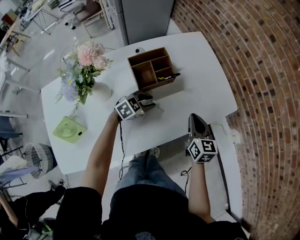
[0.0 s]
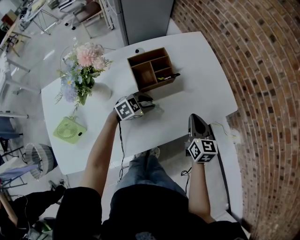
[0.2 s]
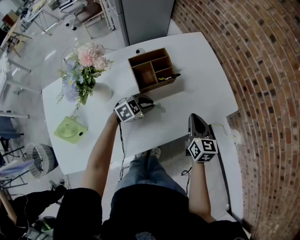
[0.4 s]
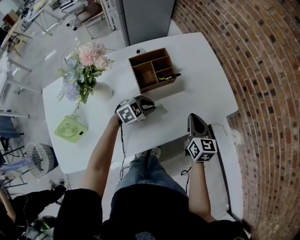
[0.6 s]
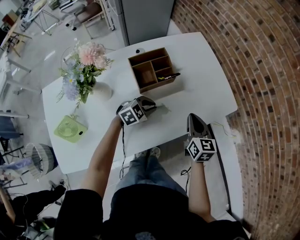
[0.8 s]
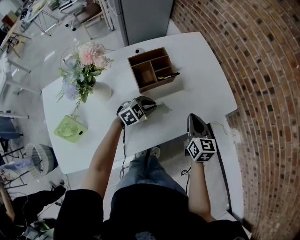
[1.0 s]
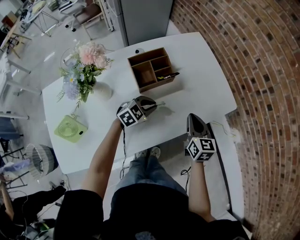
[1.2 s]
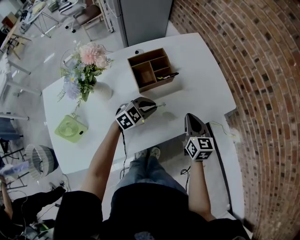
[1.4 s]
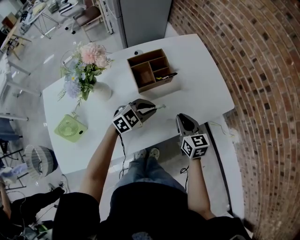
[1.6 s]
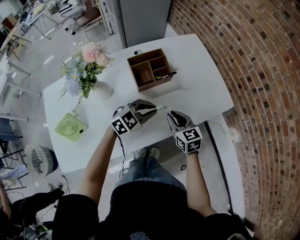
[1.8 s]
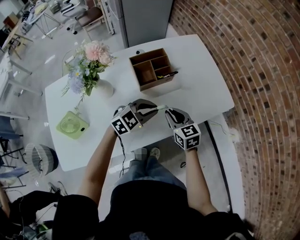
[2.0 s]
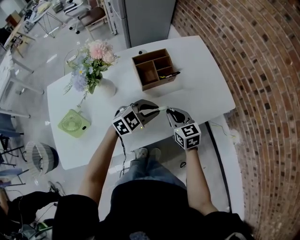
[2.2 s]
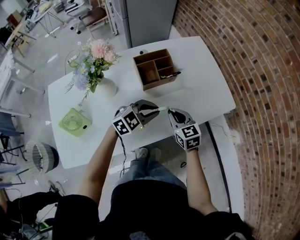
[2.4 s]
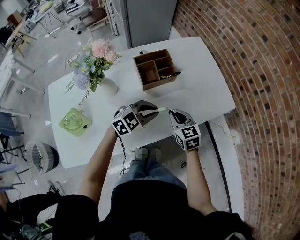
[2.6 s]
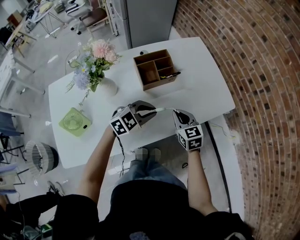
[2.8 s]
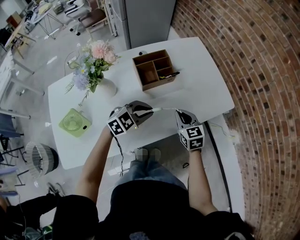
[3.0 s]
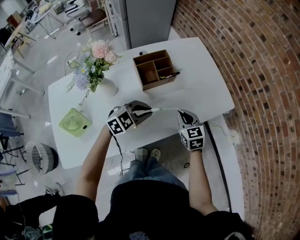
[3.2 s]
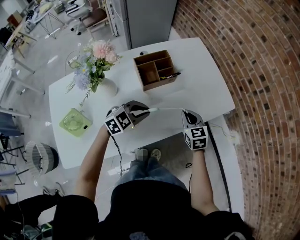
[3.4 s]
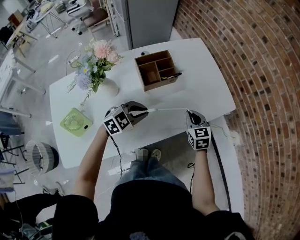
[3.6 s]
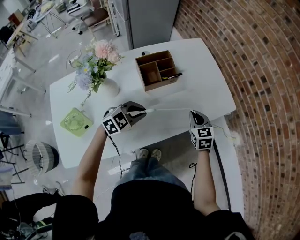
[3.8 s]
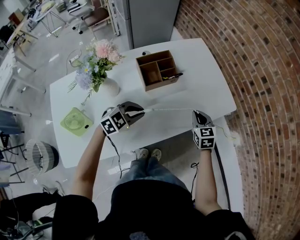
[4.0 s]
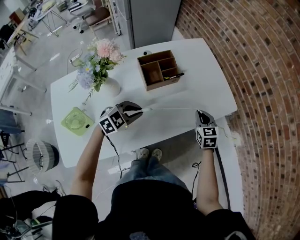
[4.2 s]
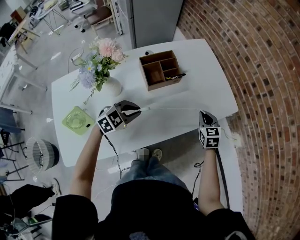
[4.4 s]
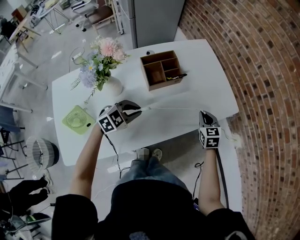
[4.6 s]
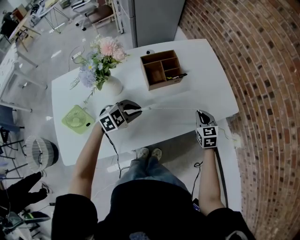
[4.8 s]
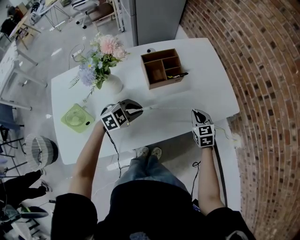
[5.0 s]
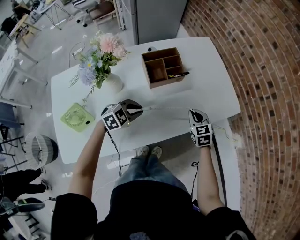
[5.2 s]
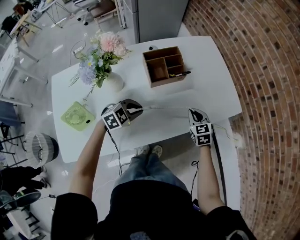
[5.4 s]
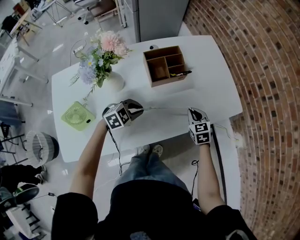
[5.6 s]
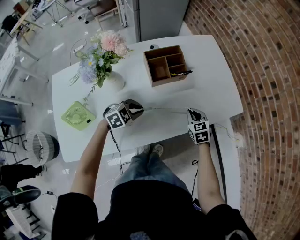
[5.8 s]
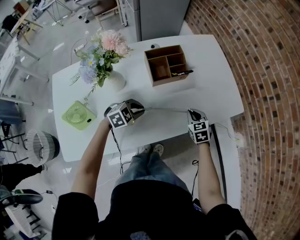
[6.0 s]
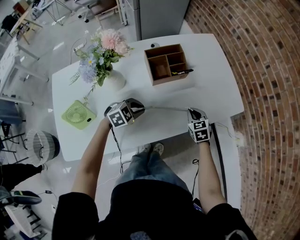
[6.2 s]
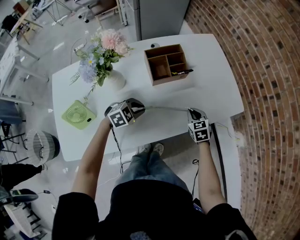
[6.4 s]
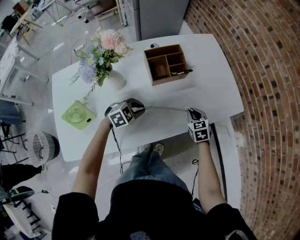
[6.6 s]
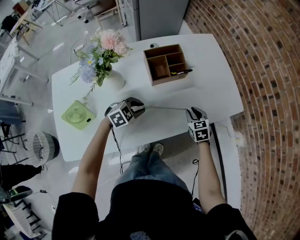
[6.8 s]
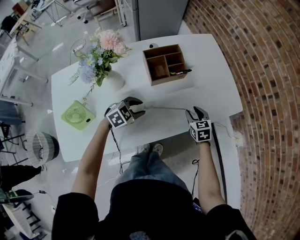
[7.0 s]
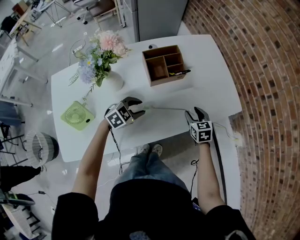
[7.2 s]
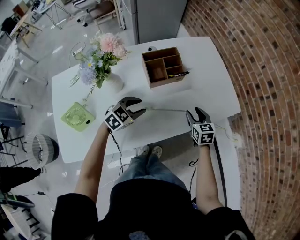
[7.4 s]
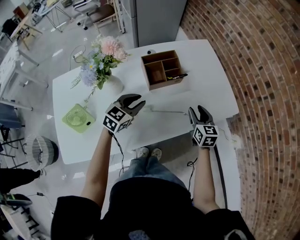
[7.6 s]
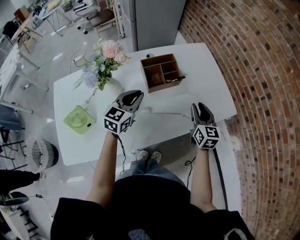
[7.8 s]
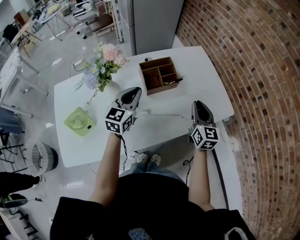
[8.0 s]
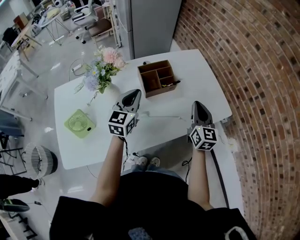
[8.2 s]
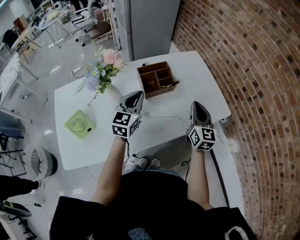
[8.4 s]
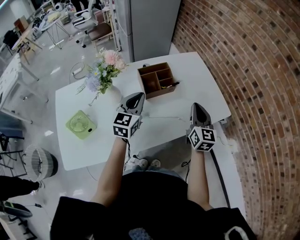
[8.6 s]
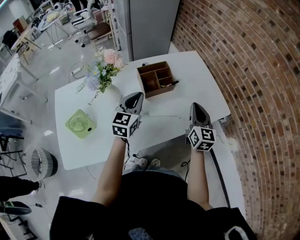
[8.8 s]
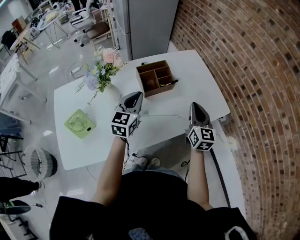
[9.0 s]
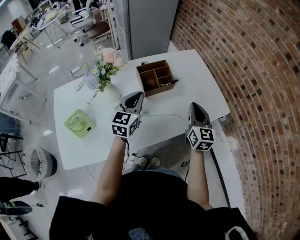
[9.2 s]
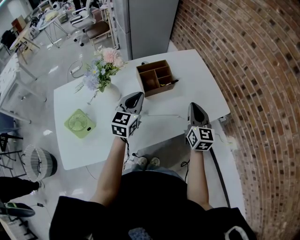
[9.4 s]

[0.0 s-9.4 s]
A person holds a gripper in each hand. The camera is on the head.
0.0 to 1.6 s: The left gripper is displaced upward by about 5 cm, and closes; the right gripper shifts by approximately 5 cm.
1.6 to 3.2 s: The left gripper goes about 5 cm backward.
3.2 to 4.8 s: The left gripper shifts about 5 cm to the left. The right gripper moves to the right and forward, about 10 cm.
4.8 to 6.2 s: The grippers both shift downward by roughly 5 cm.
6.2 to 7.8 s: The grippers both shift upward by about 15 cm. The left gripper points its fingers some 30 degrees further upward, and opens and closes again. Meanwhile the right gripper swivels approximately 30 degrees, and opens its fingers.
7.8 to 9.4 s: The right gripper moves upward, approximately 5 cm, and closes its fingers, while the left gripper ends up about 5 cm from where it was.

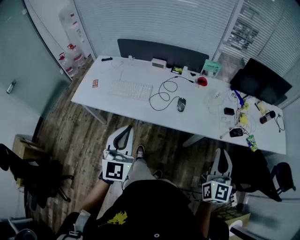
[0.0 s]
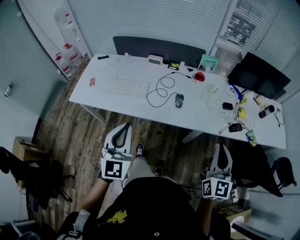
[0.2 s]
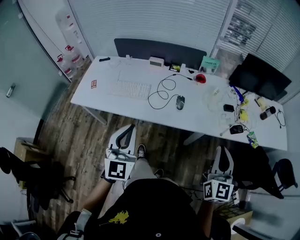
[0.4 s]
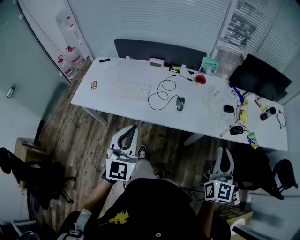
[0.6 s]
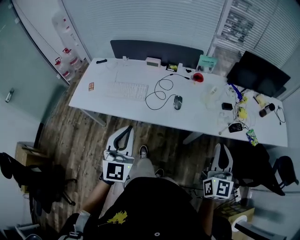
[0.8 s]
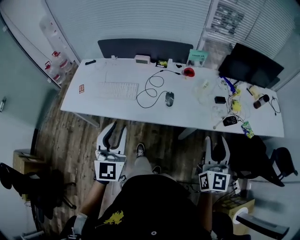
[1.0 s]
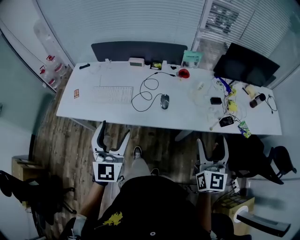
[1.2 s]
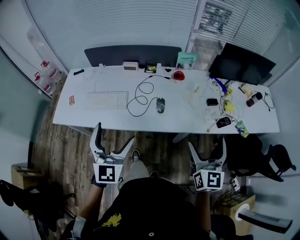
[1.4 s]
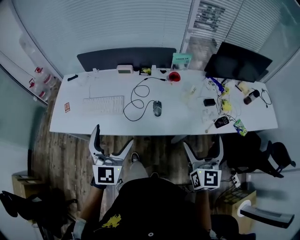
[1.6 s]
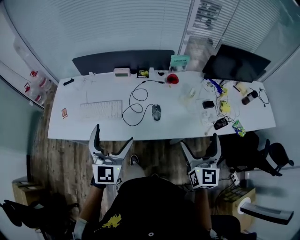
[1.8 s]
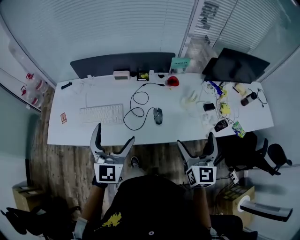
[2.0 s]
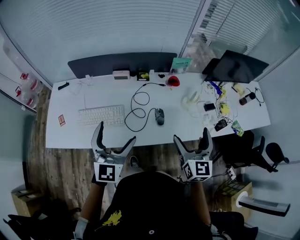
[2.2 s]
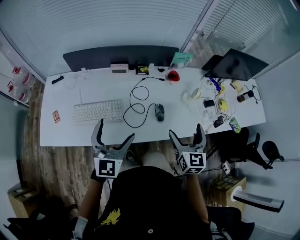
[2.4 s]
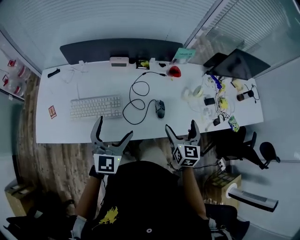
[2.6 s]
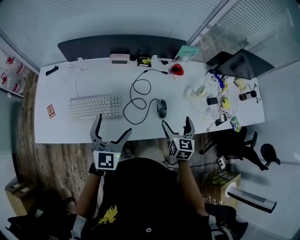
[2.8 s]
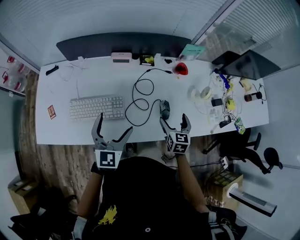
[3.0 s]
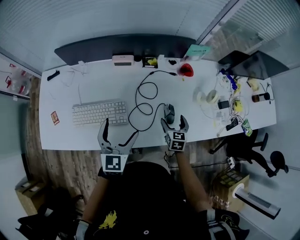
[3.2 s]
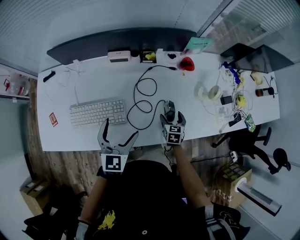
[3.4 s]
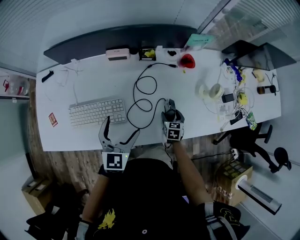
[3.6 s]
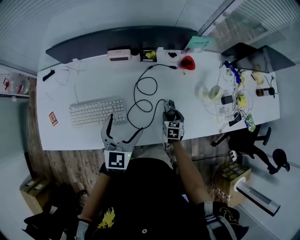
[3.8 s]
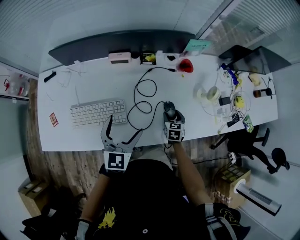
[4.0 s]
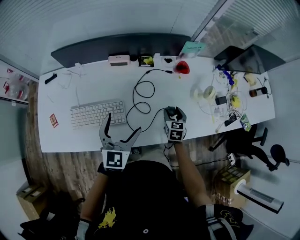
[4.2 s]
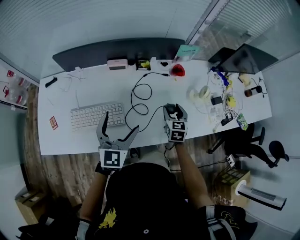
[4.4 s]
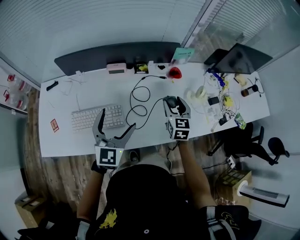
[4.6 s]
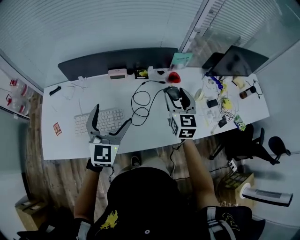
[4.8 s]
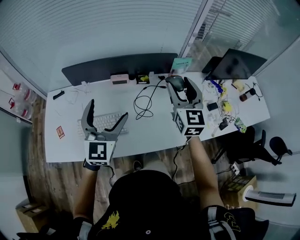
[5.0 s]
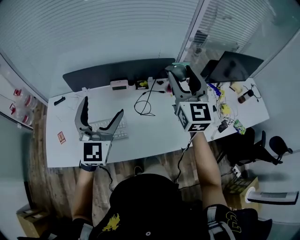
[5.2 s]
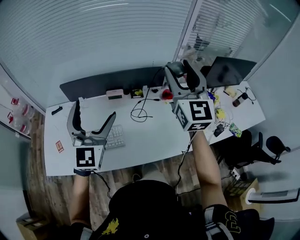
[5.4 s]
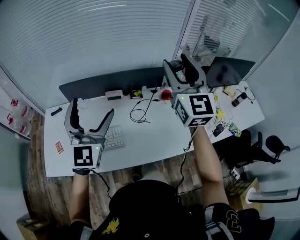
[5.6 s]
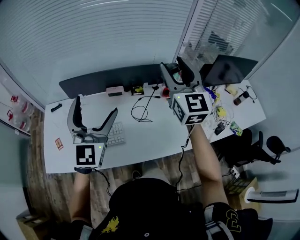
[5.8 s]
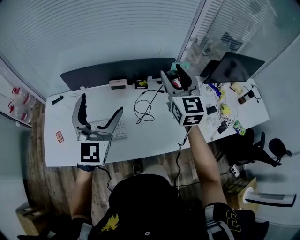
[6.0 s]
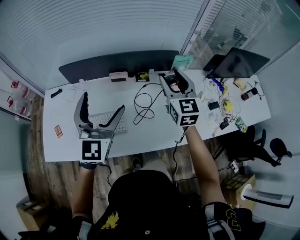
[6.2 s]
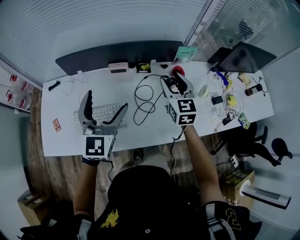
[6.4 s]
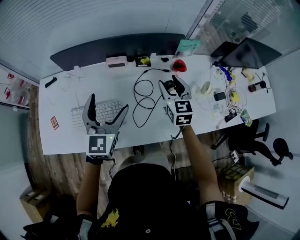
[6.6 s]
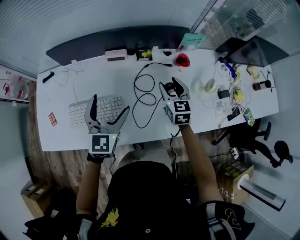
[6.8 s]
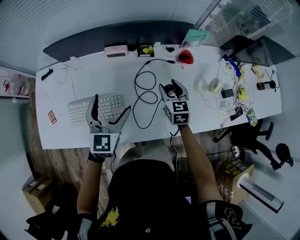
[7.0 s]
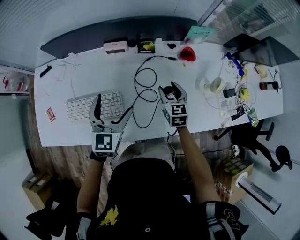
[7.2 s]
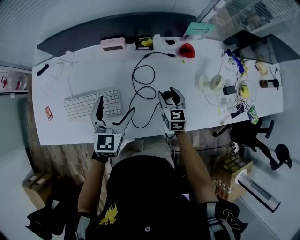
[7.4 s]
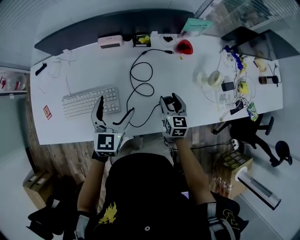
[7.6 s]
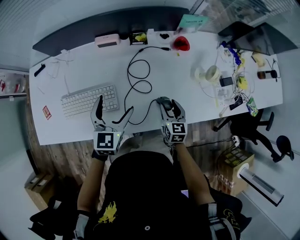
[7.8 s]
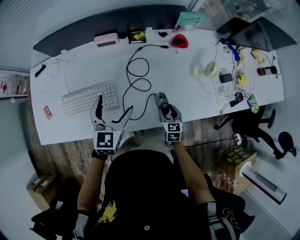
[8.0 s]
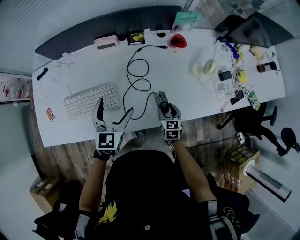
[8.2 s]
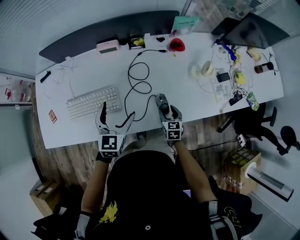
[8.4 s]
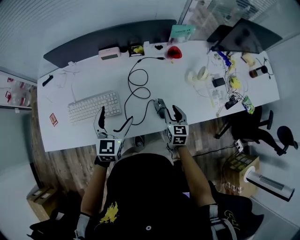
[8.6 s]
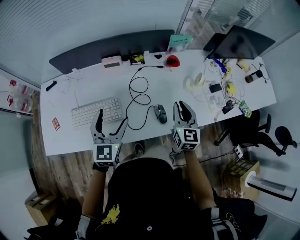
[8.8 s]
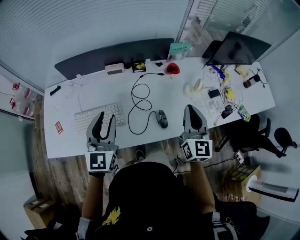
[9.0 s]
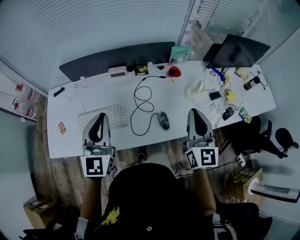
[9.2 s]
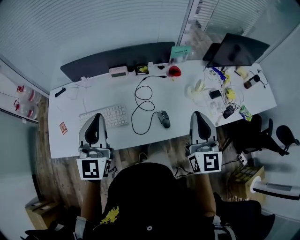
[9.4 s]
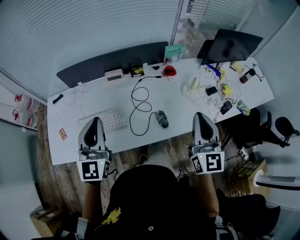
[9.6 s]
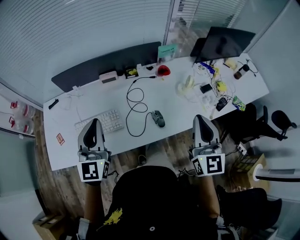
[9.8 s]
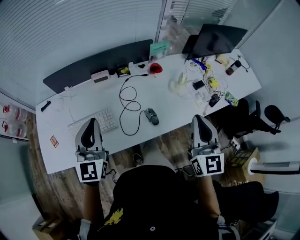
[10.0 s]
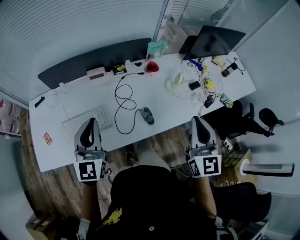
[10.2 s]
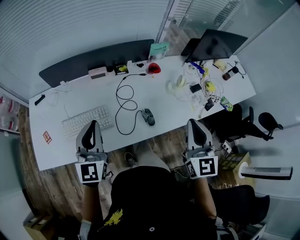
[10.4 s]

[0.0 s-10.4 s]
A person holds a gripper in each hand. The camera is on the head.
0.0 to 1.4 s: Both grippers travel together forward, approximately 10 cm. The right gripper opens up; the left gripper opens its fingers.
1.4 to 3.0 s: The left gripper is displaced forward, to the left and downward by approximately 35 cm; the right gripper heads forward, downward and to the left, covering some 40 cm, and angles its fingers downward, by about 30 degrees.
3.0 to 4.4 s: The right gripper moves forward, approximately 5 cm, goes downward and returns, approximately 20 cm each way, and closes, while the left gripper goes downward and returns, some 5 cm each way.
4.4 to 6.0 s: The right gripper goes some 35 cm upward, and points its fingers approximately 30 degrees further upward; the left gripper moves upward, approximately 20 cm.
6.0 to 7.4 s: The grippers both shift downward by some 35 cm. The right gripper tilts its fingers some 30 degrees downward; the left gripper swivels approximately 30 degrees.
7.4 to 9.0 s: The right gripper moves upward and backward, about 35 cm, points its fingers some 30 degrees further upward, and closes up, while the left gripper is displaced upward and backward by roughly 20 cm, and closes up.
9.0 to 10.4 s: The right gripper travels backward and upward by some 10 cm.

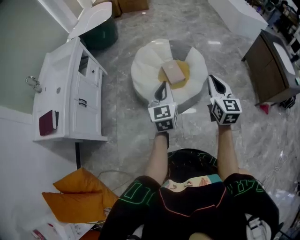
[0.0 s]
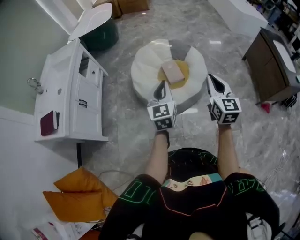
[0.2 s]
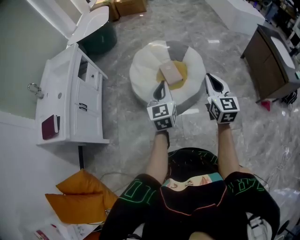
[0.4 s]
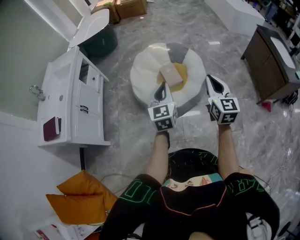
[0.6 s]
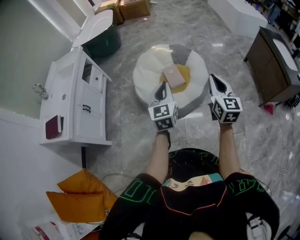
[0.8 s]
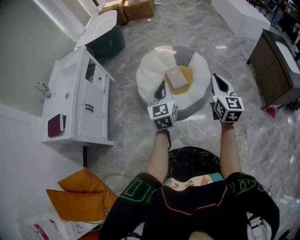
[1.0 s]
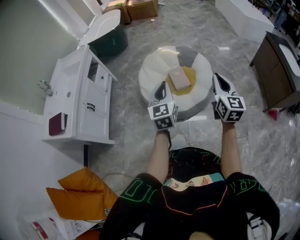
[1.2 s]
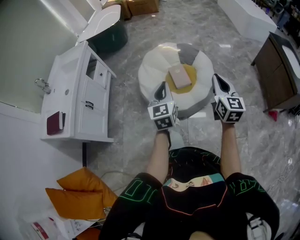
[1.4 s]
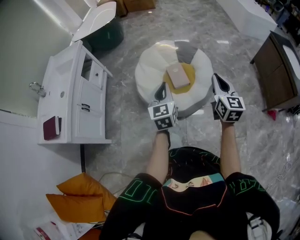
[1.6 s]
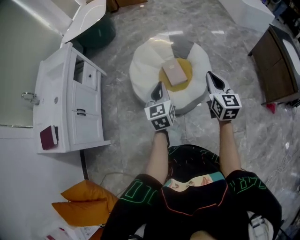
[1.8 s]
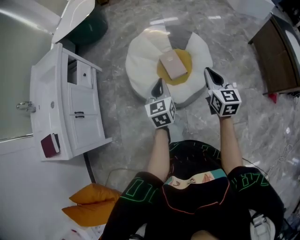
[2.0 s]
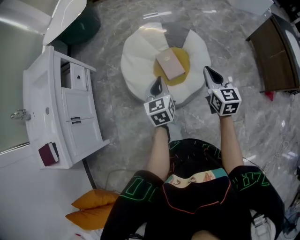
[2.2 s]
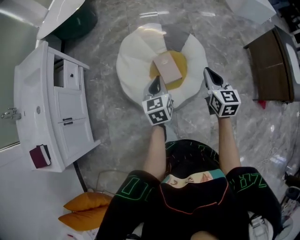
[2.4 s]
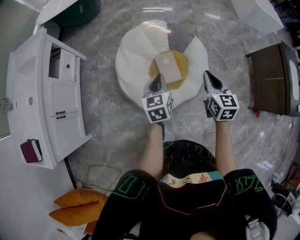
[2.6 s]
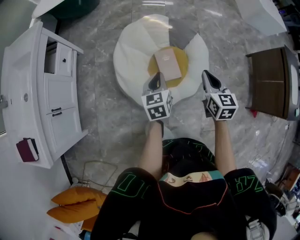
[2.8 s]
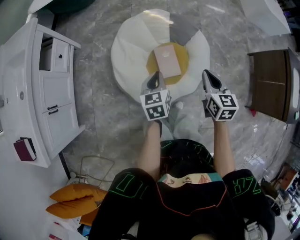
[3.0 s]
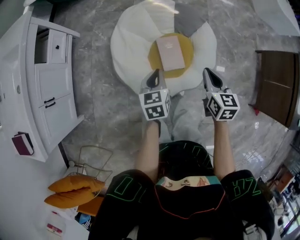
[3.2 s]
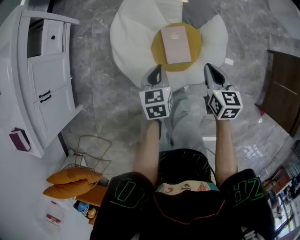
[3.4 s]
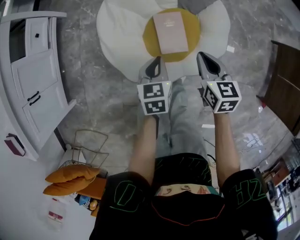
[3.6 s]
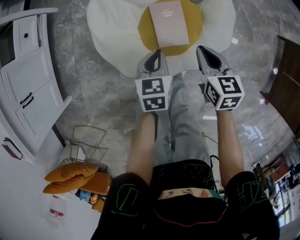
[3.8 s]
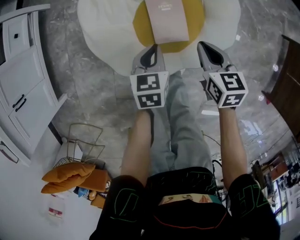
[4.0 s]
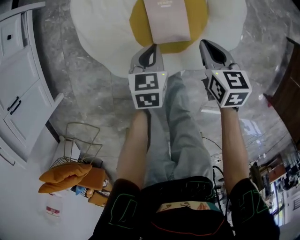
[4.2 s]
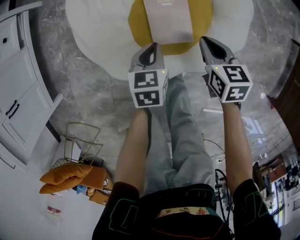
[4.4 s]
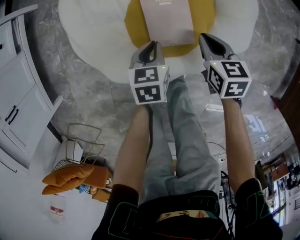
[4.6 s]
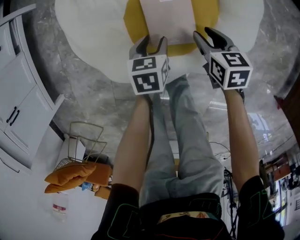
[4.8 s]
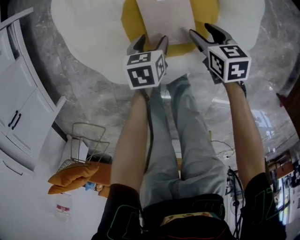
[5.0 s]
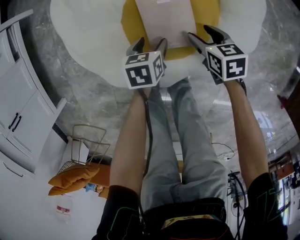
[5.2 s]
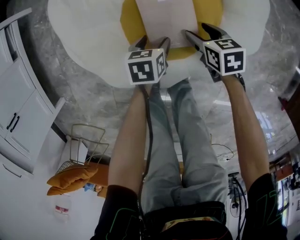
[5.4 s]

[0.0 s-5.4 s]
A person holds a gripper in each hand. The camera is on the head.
0.0 to 1.4 s: The right gripper ends up approximately 5 cm from where it was.
1.4 to 2.8 s: The two grippers go approximately 30 cm forward and downward. The right gripper turns by about 20 degrees. Meanwhile the left gripper rotates roughly 30 degrees.
2.8 to 4.0 s: The two grippers go some 30 cm downward. The right gripper changes its angle by about 20 degrees.
4.0 to 5.4 s: Both grippers travel together downward, some 25 cm. The left gripper changes its angle by about 20 degrees, and opens up; the right gripper opens up.
